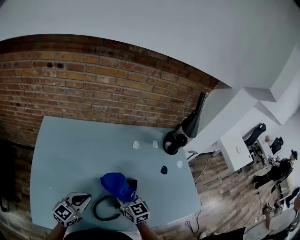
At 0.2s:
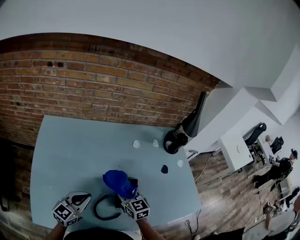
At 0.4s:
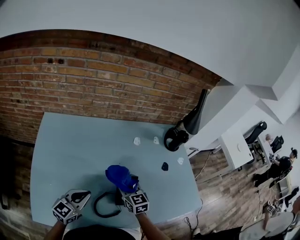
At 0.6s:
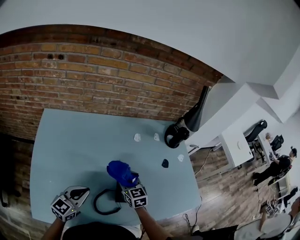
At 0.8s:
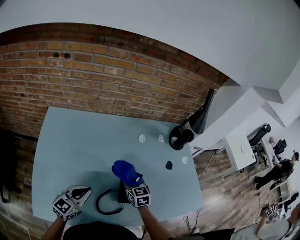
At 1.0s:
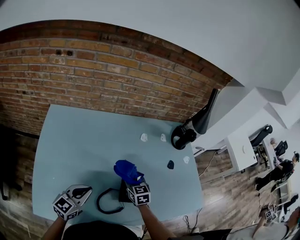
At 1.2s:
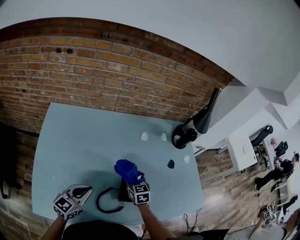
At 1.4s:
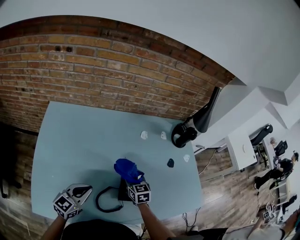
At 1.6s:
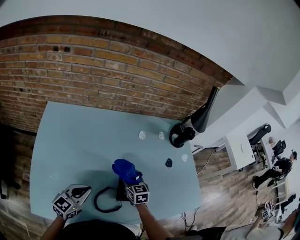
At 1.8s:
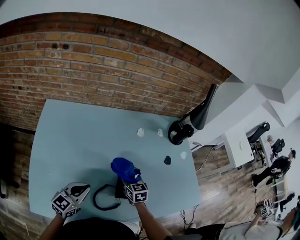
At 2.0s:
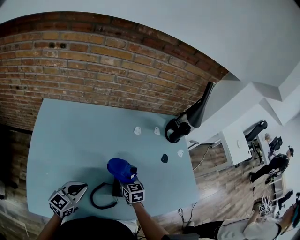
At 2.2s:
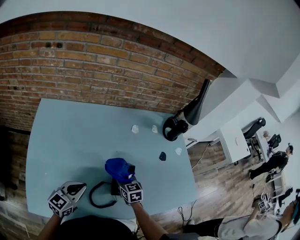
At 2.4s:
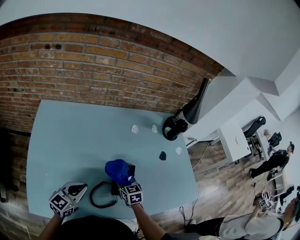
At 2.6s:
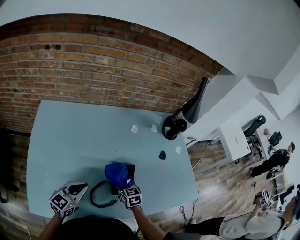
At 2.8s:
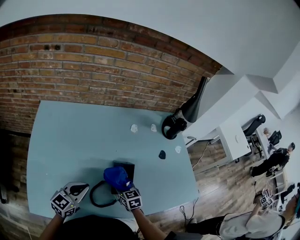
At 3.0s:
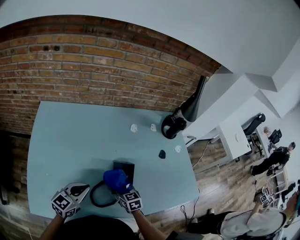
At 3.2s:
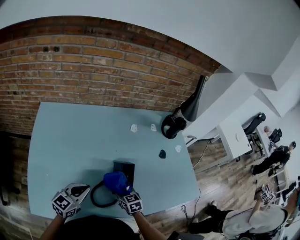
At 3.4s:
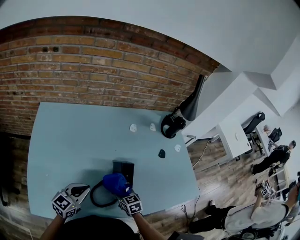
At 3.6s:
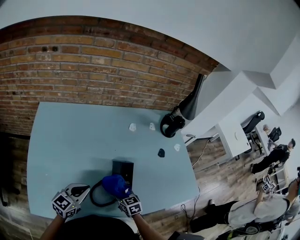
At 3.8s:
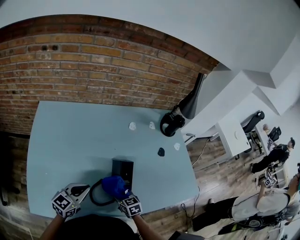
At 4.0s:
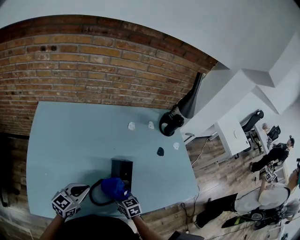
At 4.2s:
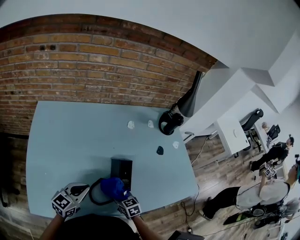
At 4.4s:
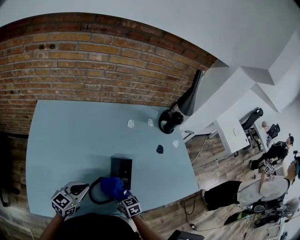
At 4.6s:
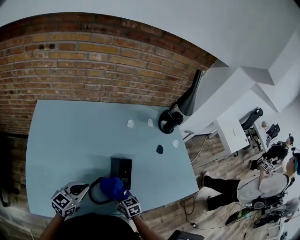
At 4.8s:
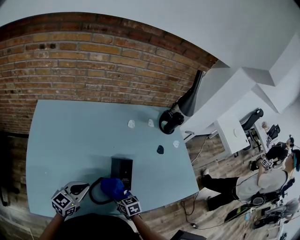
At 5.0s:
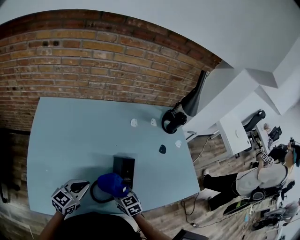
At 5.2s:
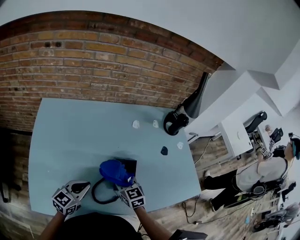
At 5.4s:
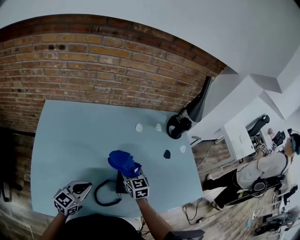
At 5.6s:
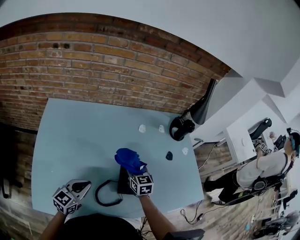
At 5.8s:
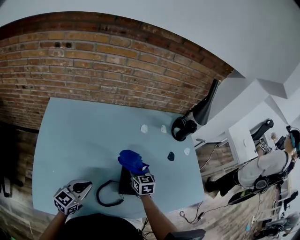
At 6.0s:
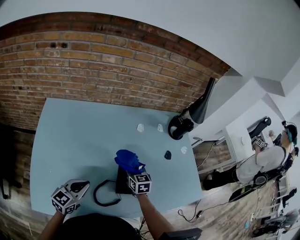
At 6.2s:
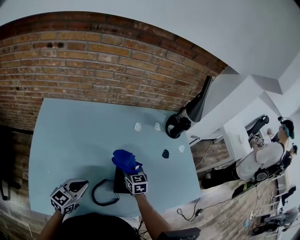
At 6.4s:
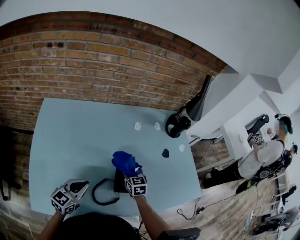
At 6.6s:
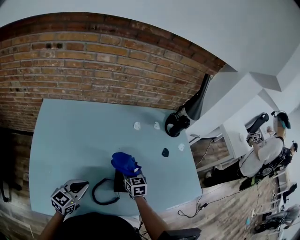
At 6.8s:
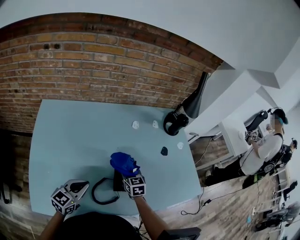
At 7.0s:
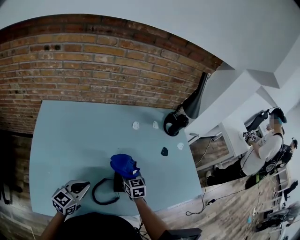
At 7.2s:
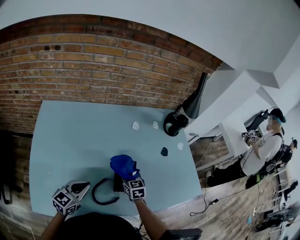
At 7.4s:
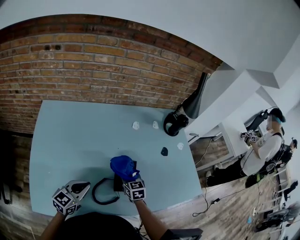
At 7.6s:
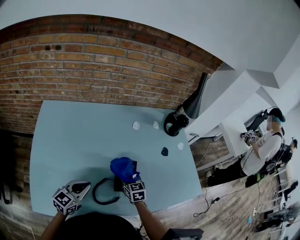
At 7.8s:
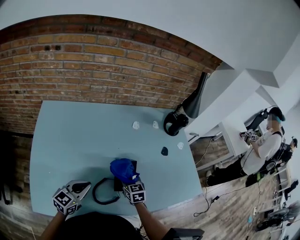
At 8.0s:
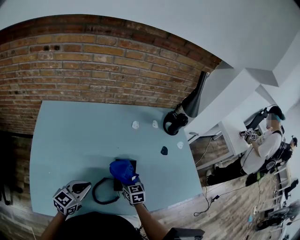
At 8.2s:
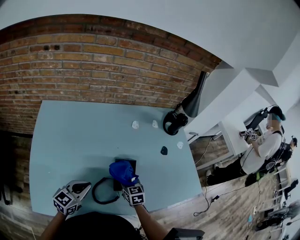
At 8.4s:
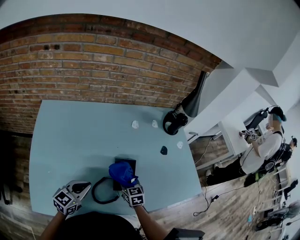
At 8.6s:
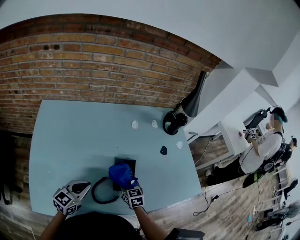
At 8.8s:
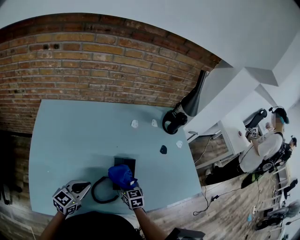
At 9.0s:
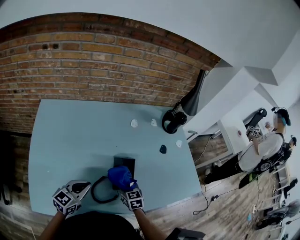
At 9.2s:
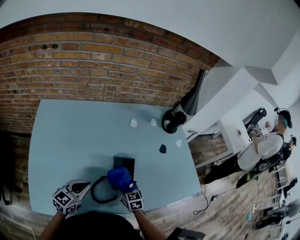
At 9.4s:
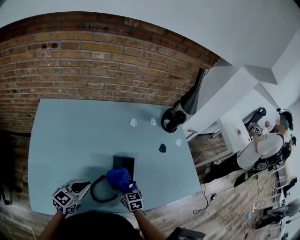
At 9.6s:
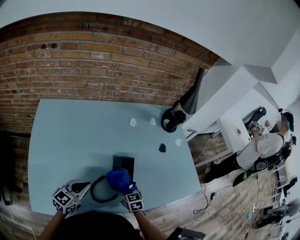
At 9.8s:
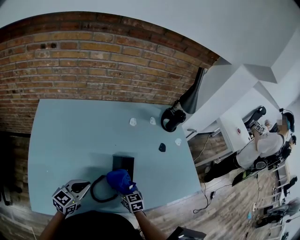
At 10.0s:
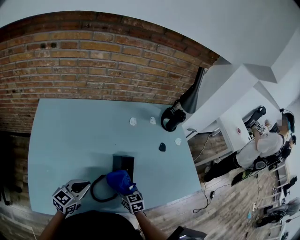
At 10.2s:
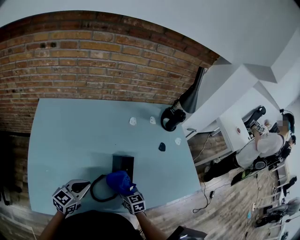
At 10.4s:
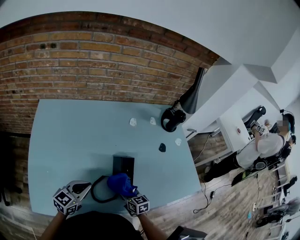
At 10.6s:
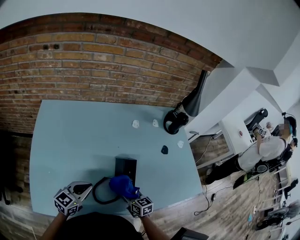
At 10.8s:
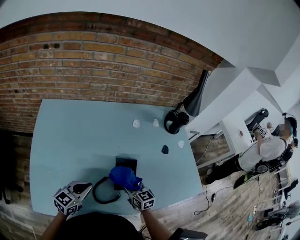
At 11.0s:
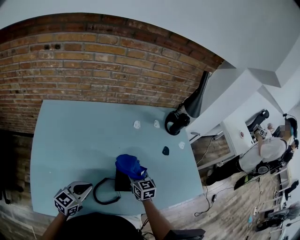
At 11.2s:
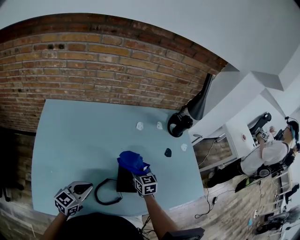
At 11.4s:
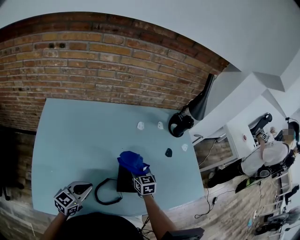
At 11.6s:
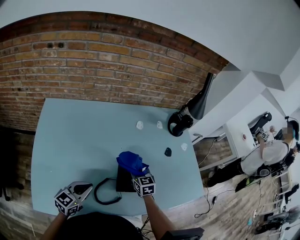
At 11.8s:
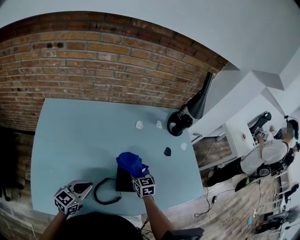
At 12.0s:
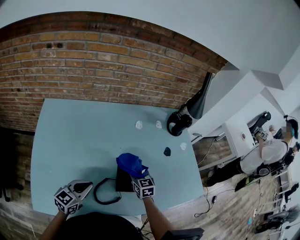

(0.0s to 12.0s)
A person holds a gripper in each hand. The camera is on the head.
0.0s - 1.6s: The right gripper travels downward and forward by approximately 10 cm.
1.6s - 3.0s: The right gripper is displaced backward by some 10 cm.
3.0s - 4.4s: The right gripper goes some 5 cm backward.
4.4s - 6.0s: The right gripper goes some 20 cm forward and upward.
6.0s - 7.6s: The right gripper goes about 5 cm backward.
7.6s - 9.0s: The right gripper shifts approximately 5 cm backward.
9.0s - 10.4s: The grippers make only small movements.
10.4s - 12.0s: The right gripper shifts approximately 15 cm forward and upward.

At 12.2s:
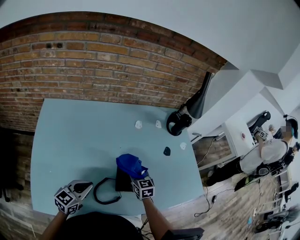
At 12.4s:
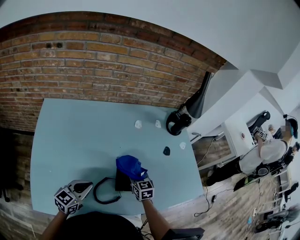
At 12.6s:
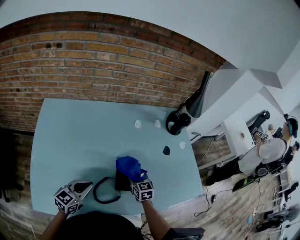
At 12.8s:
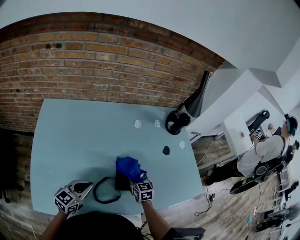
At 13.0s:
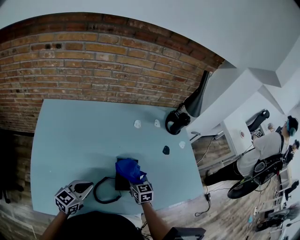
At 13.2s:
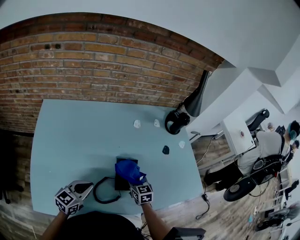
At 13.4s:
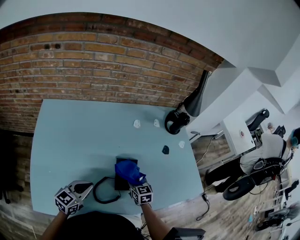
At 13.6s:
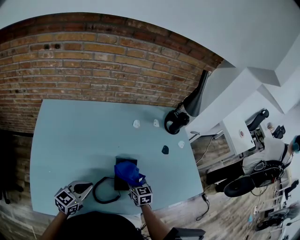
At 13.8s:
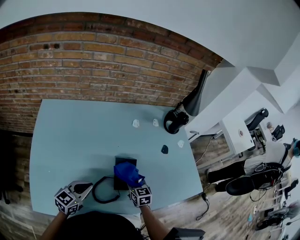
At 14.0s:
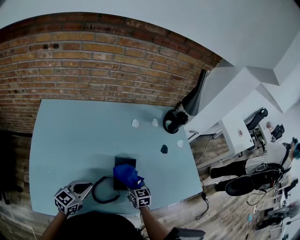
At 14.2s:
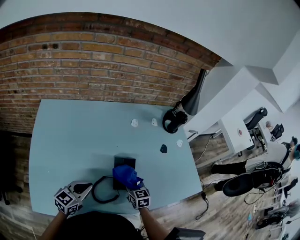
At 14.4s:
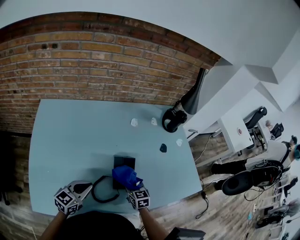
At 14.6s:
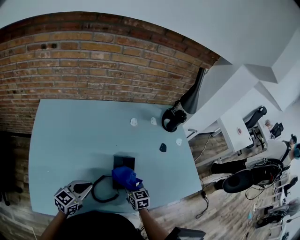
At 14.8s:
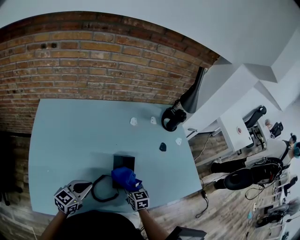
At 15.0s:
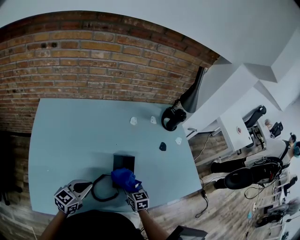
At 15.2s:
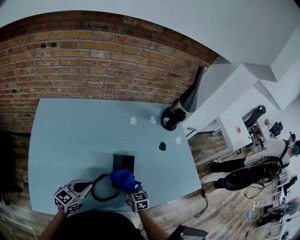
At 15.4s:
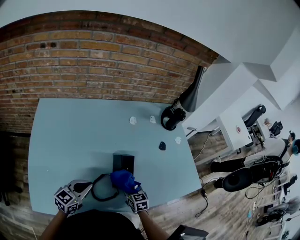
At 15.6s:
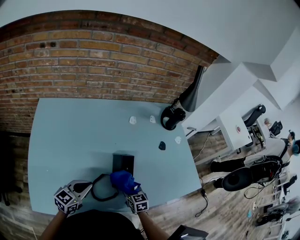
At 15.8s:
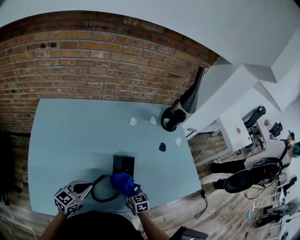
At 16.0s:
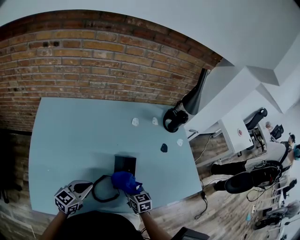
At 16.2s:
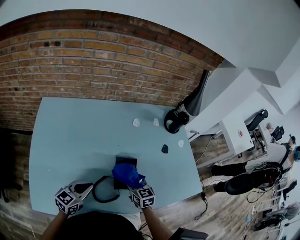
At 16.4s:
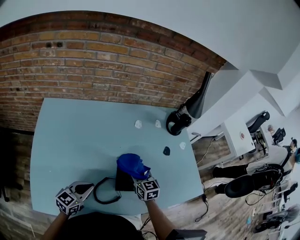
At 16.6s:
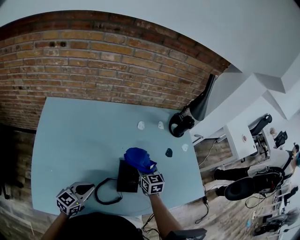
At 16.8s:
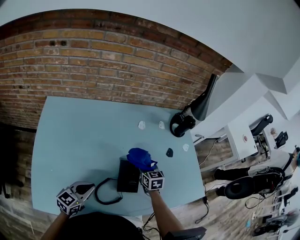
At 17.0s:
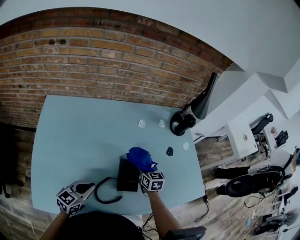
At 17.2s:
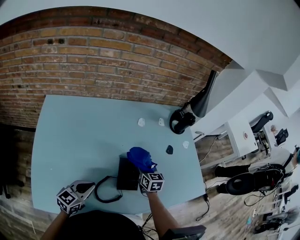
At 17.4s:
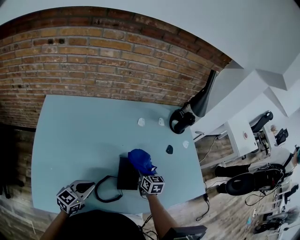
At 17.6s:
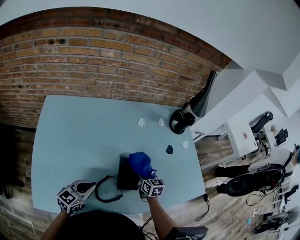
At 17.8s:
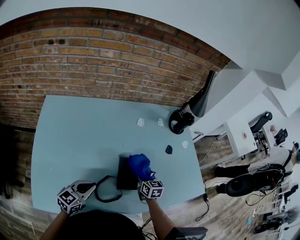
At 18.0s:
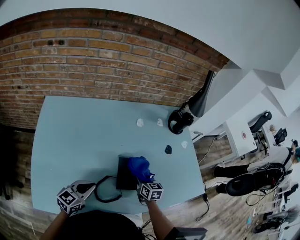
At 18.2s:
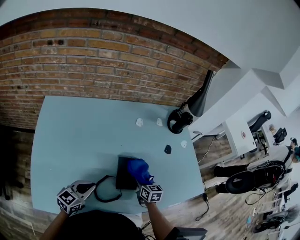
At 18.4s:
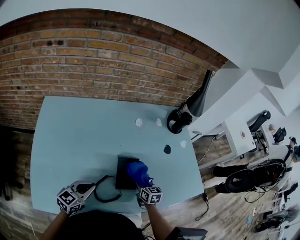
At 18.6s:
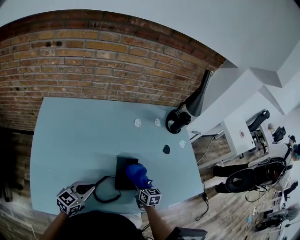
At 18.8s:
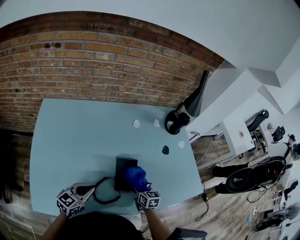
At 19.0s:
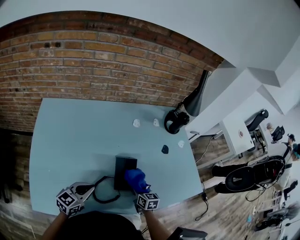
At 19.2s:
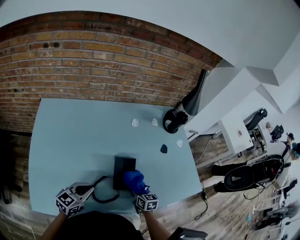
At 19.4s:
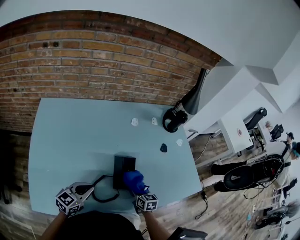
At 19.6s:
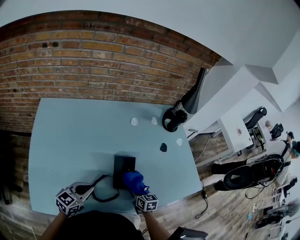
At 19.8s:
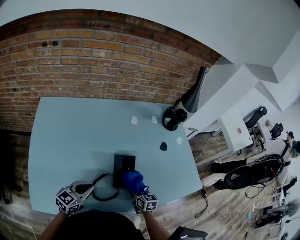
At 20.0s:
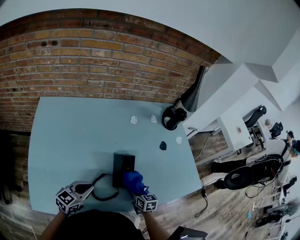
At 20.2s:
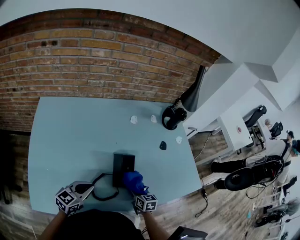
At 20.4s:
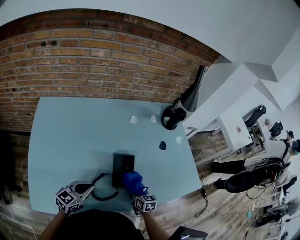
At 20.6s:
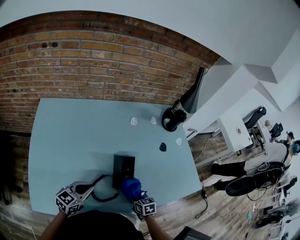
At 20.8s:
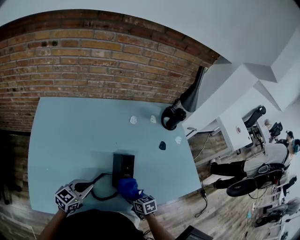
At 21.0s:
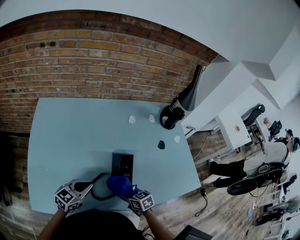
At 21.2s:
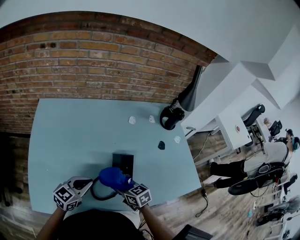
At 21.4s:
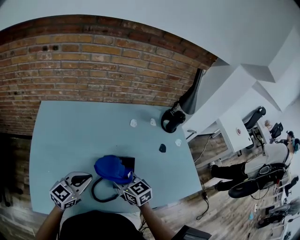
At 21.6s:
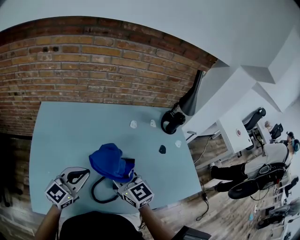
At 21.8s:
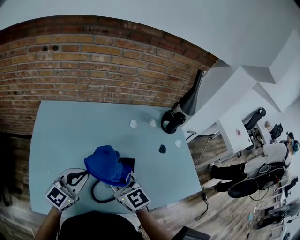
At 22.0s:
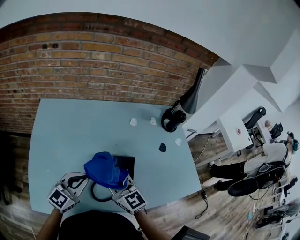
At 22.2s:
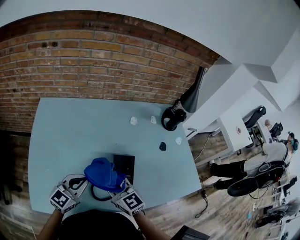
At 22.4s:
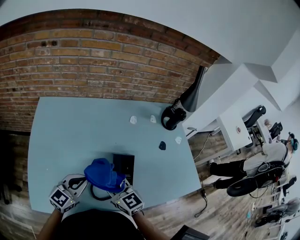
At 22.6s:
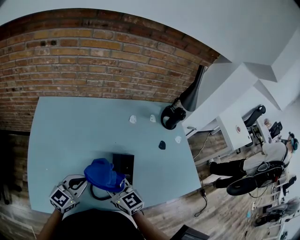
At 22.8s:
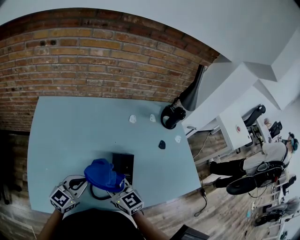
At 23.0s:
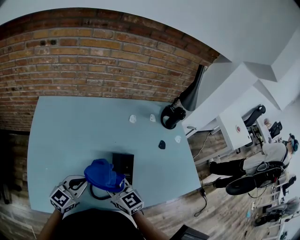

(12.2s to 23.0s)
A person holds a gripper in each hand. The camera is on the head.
12.2s - 13.8s: The right gripper heads backward, covering about 5 cm.
13.8s - 15.2s: The right gripper travels backward by approximately 5 cm.
15.2s - 16.8s: The right gripper heads forward and upward, covering some 15 cm.
16.8s - 18.4s: The right gripper is displaced backward and downward by approximately 10 cm.
18.4s - 20.0s: The right gripper moves backward, approximately 5 cm.
20.0s - 21.4s: The right gripper heads upward and to the left, covering some 25 cm, and changes its angle by approximately 30 degrees, while the left gripper goes roughly 10 cm upward.
21.4s - 23.0s: The right gripper moves about 10 cm upward and comes back; the left gripper reaches some 5 cm upward, then returns.

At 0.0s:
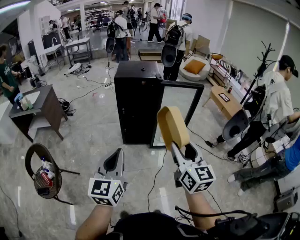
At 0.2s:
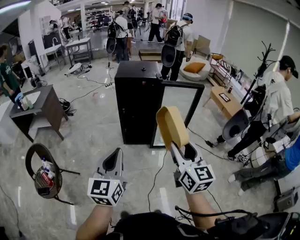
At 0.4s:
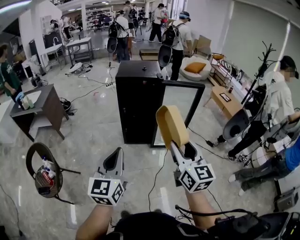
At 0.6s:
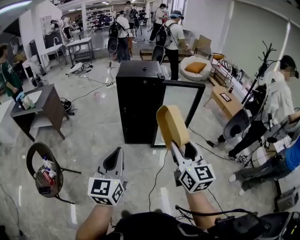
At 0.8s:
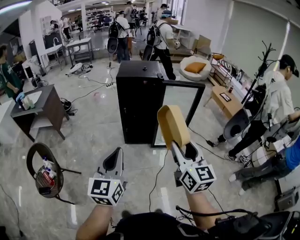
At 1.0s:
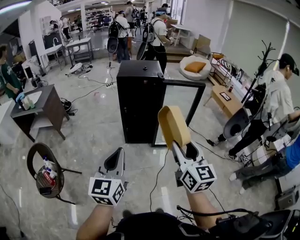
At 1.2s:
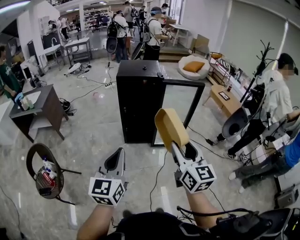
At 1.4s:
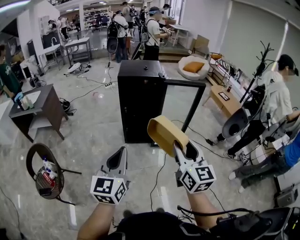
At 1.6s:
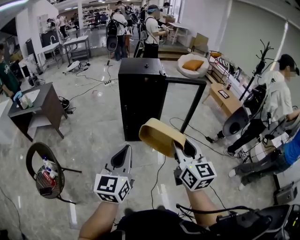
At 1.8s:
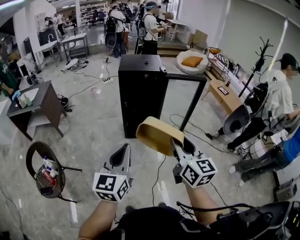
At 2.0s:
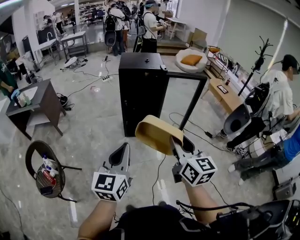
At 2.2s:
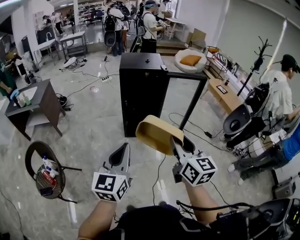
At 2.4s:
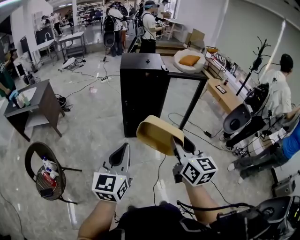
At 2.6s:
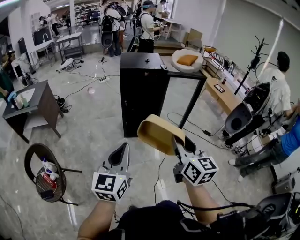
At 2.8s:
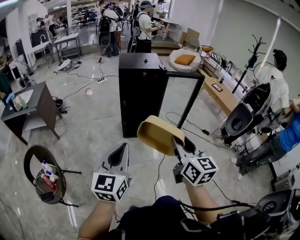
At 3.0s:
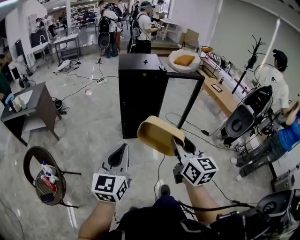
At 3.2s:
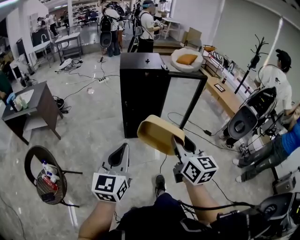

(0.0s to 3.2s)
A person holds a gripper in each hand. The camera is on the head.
0.0s - 1.6s: The right gripper shifts approximately 5 cm to the left.
1.6s - 3.2s: Both grippers move to the left, about 5 cm.
